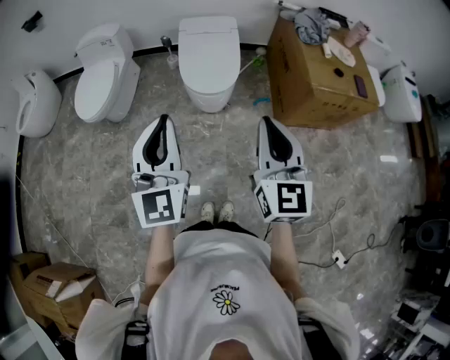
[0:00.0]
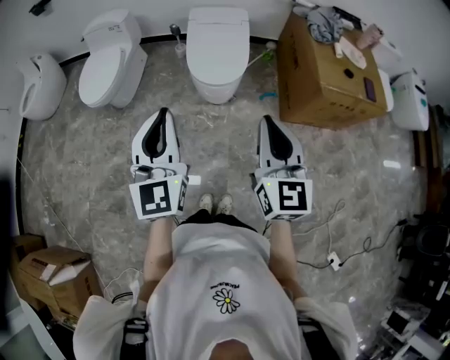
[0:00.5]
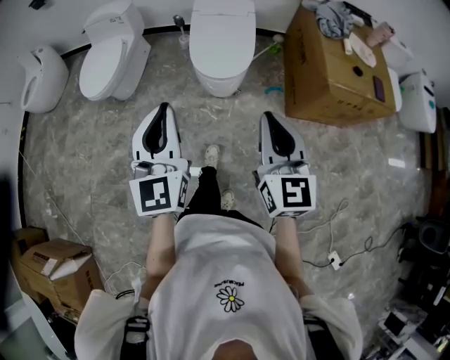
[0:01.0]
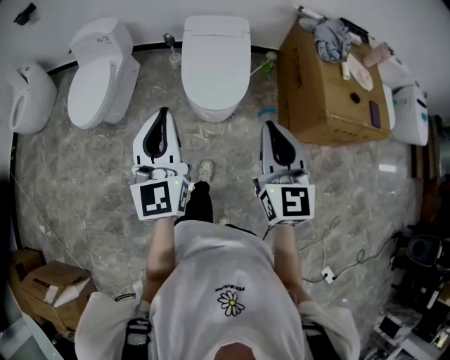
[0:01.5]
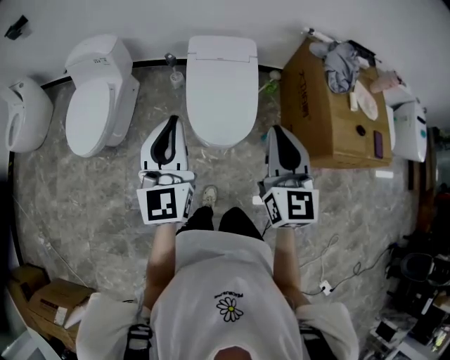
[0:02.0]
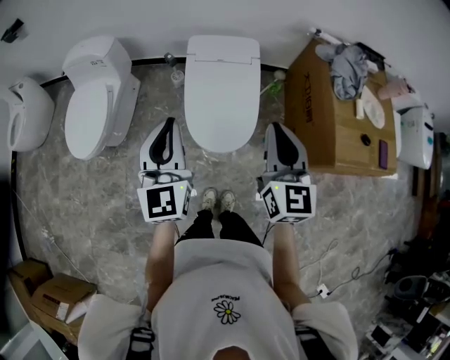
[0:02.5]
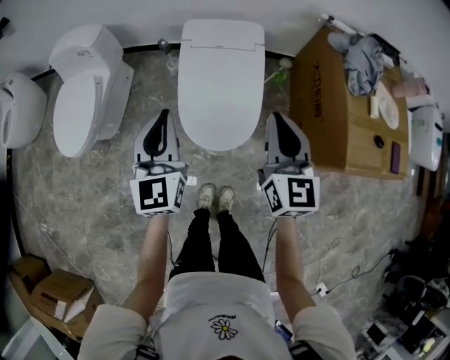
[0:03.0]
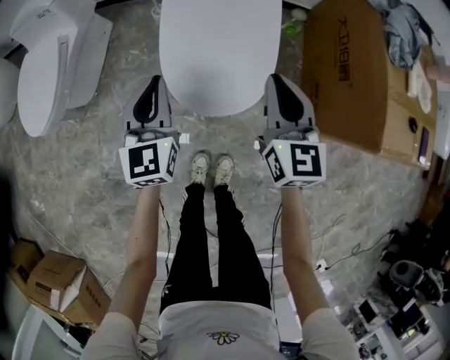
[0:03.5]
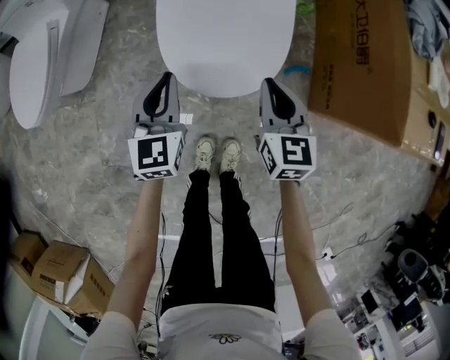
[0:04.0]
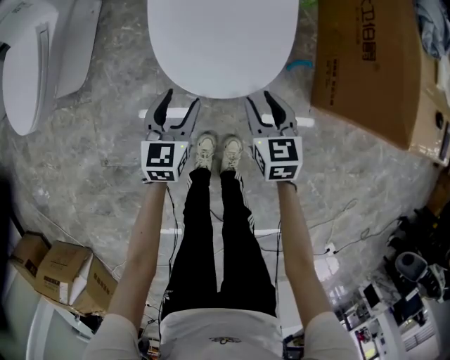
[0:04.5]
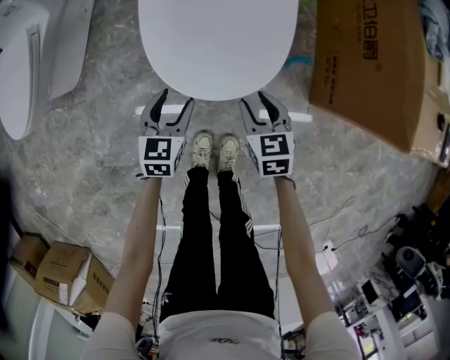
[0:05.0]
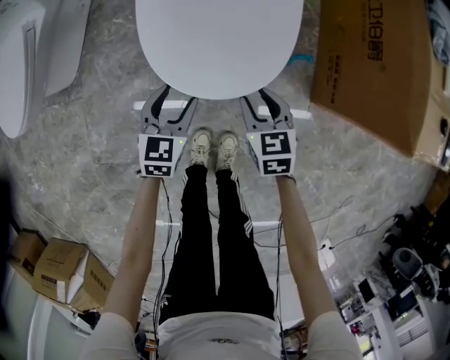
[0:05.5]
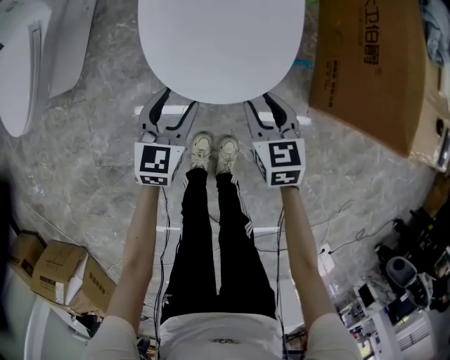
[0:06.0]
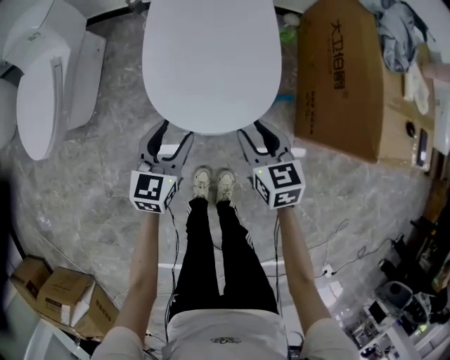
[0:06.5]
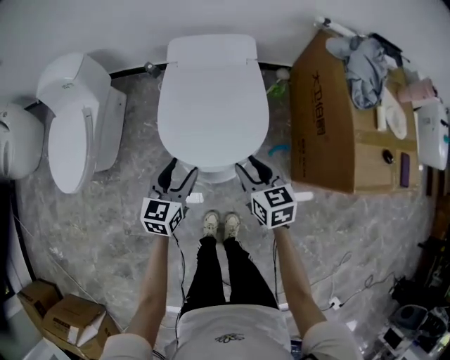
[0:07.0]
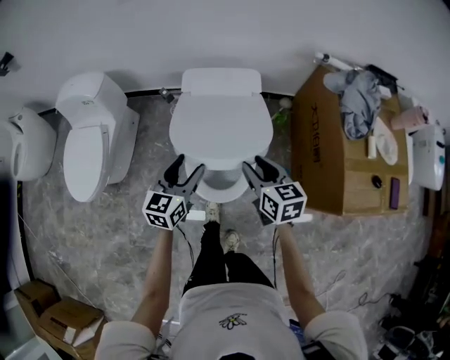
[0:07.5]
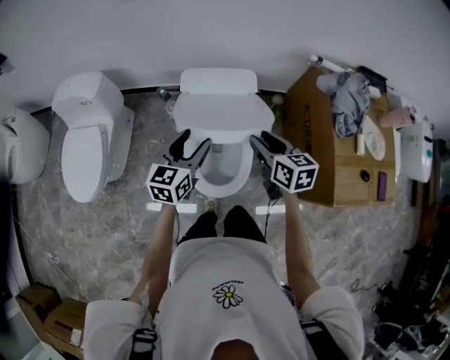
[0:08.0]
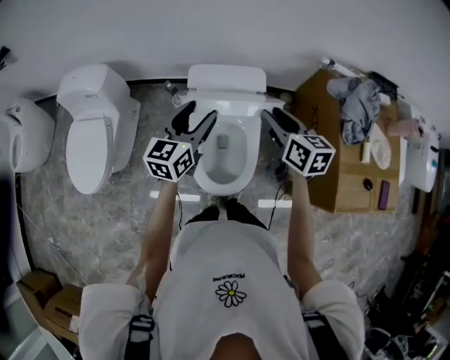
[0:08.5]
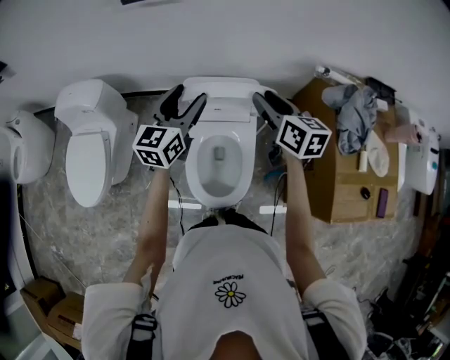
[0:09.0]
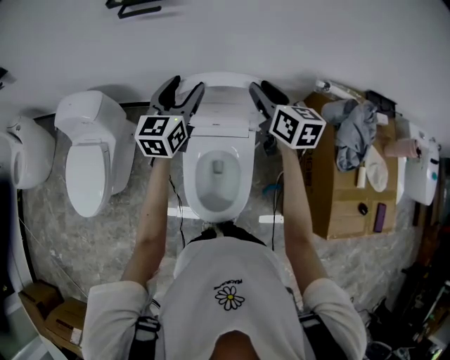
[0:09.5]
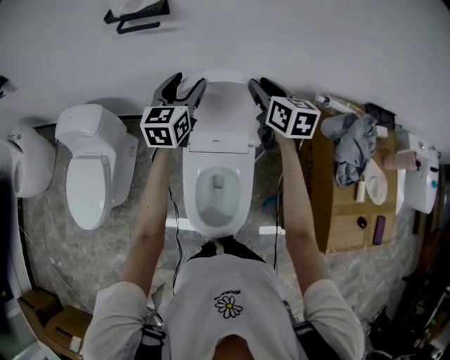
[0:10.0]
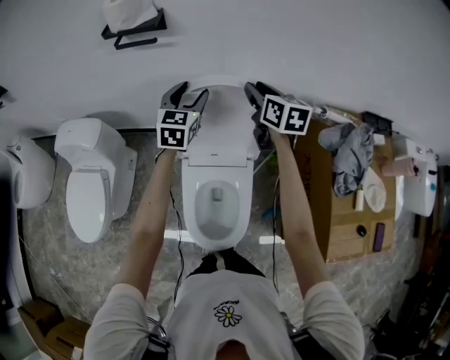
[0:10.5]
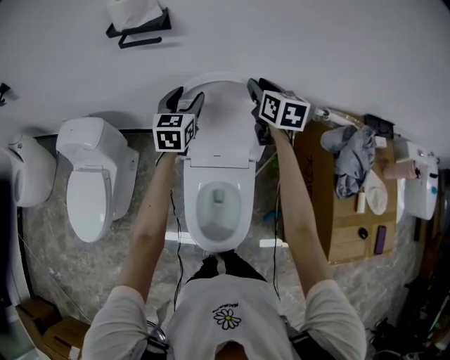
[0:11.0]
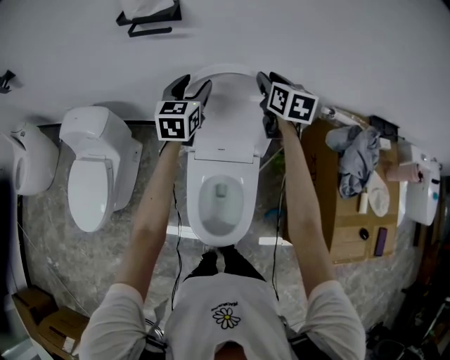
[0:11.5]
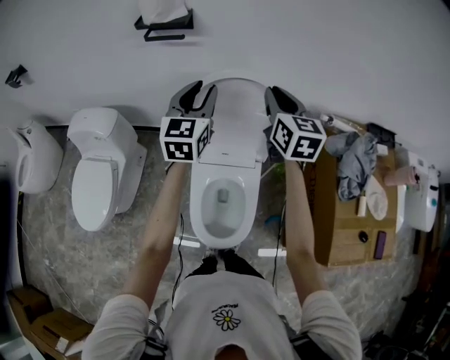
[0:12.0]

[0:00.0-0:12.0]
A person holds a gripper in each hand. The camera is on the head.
0:00.0 to 0:02.0: The grippers both shift forward by some 35 cm.
0:02.0 to 0:04.0: Both grippers travel together downward, roughly 40 cm. The left gripper rotates approximately 20 degrees, while the right gripper rotates some 20 degrees.
0:04.0 to 0:06.0: Both grippers travel together downward, approximately 10 cm. The right gripper opens. The left gripper opens its fingers.
0:06.0 to 0:08.0: Both grippers move upward and forward, approximately 40 cm. The right gripper changes its angle by roughly 20 degrees.
0:08.0 to 0:10.0: Both grippers travel together forward, roughly 30 cm.
0:10.0 to 0:12.0: Both grippers move upward, roughly 5 cm. The left gripper closes.

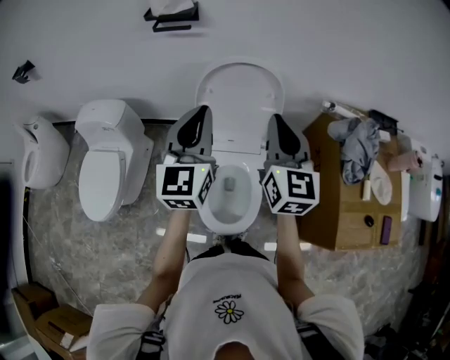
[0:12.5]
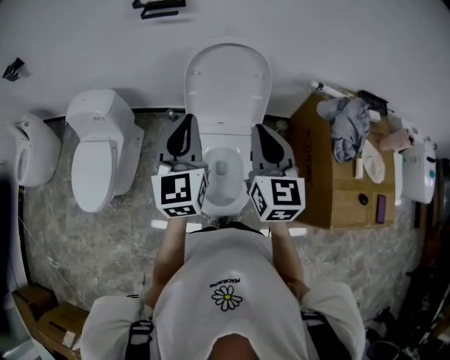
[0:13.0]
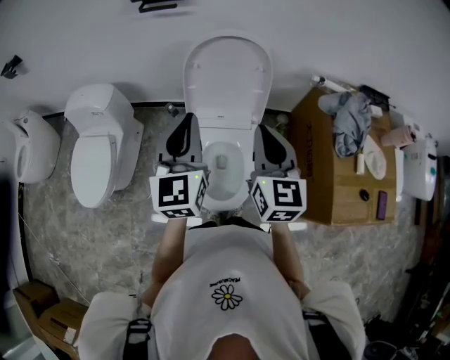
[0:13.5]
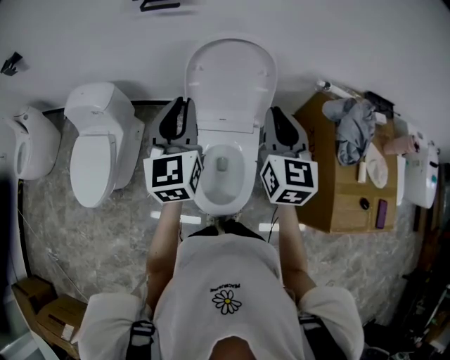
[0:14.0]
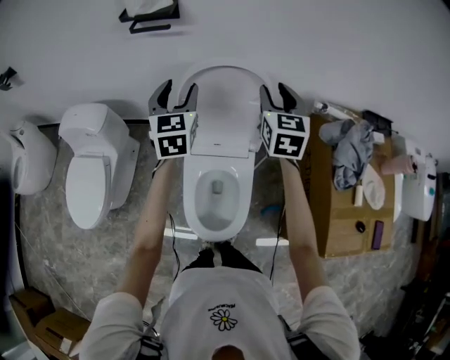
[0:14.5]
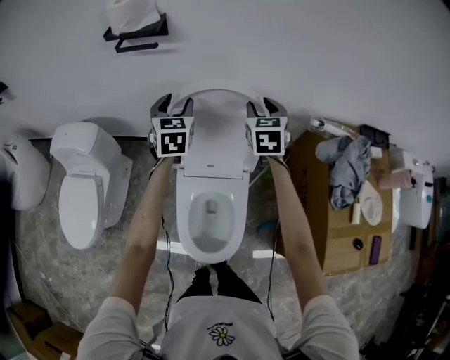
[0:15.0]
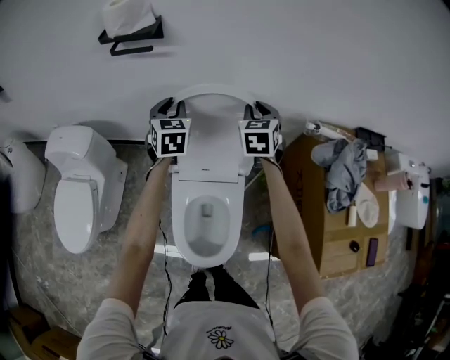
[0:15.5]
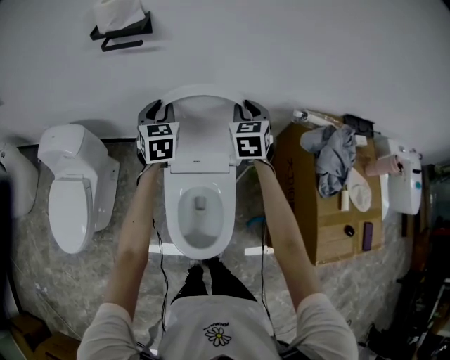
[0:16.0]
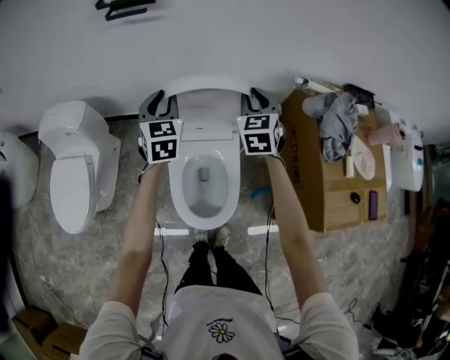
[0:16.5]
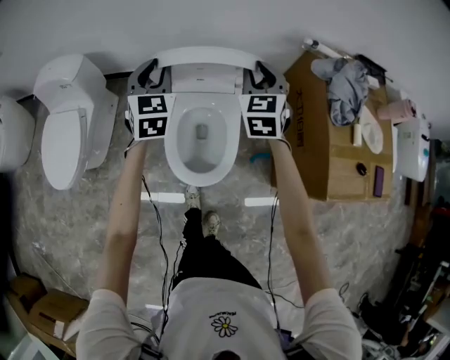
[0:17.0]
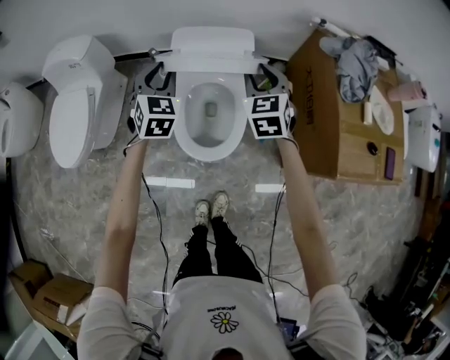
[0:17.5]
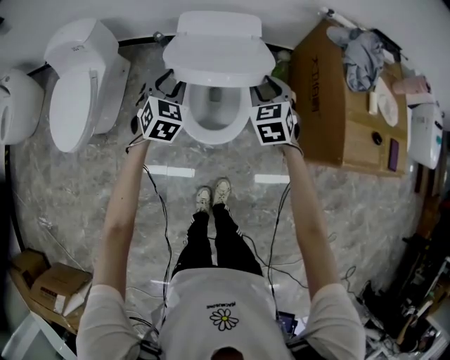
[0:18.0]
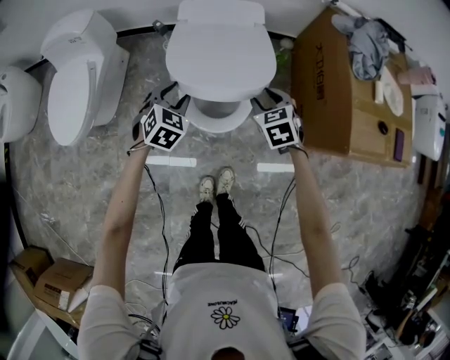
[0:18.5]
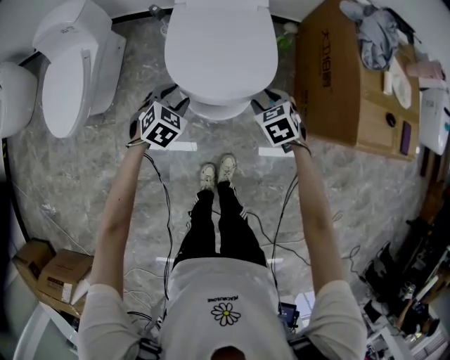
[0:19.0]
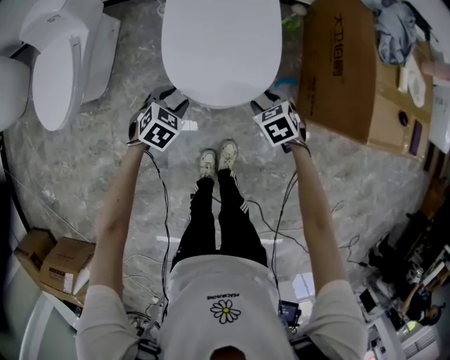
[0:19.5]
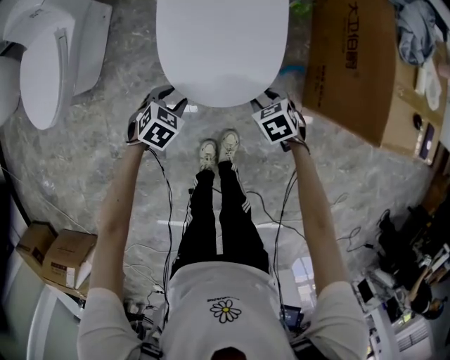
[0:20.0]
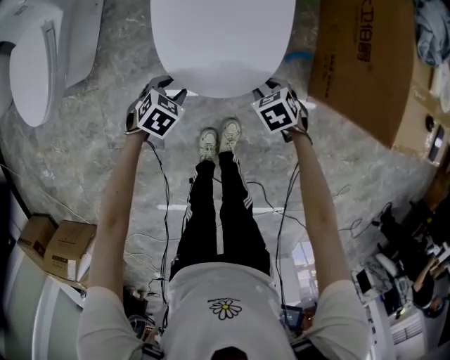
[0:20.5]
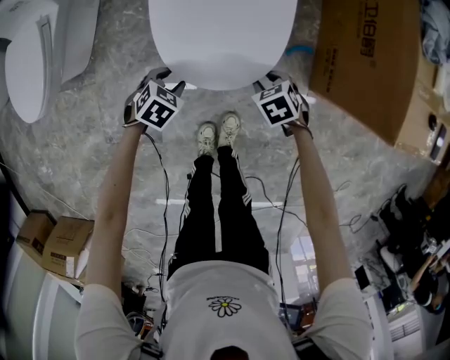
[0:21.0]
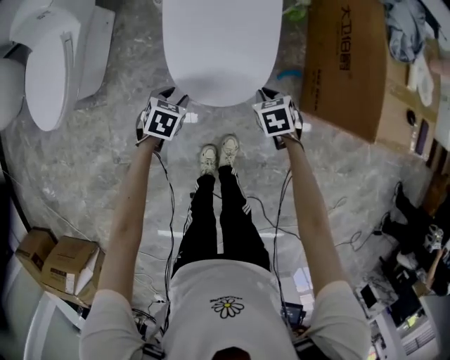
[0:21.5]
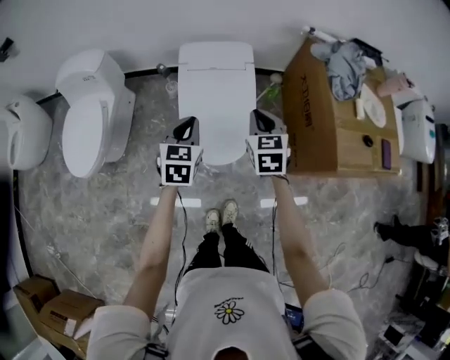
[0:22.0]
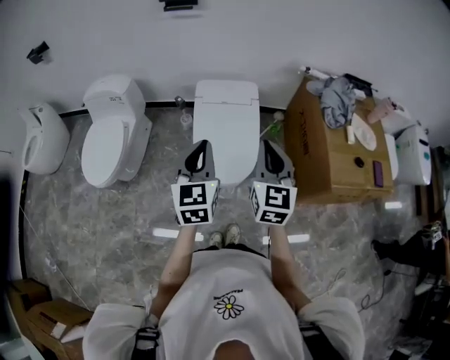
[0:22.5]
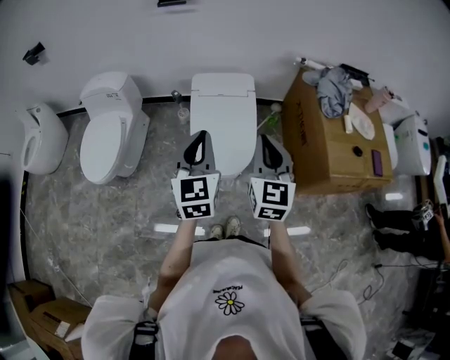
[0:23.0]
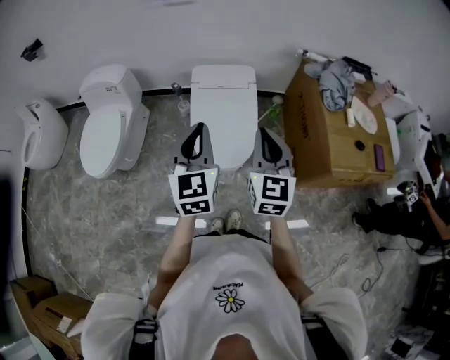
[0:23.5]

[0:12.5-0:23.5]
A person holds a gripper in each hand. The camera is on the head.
0:12.5 to 0:14.5: The two grippers go roughly 20 cm forward and downward. The right gripper opens, while the left gripper opens.
0:14.5 to 0:16.0: The left gripper travels downward and forward by about 10 cm, and closes up. Meanwhile the right gripper is displaced downward by approximately 10 cm.
0:16.0 to 0:18.0: The grippers both shift backward by roughly 35 cm. The left gripper changes its angle by about 30 degrees.
0:18.0 to 0:20.0: Both grippers move downward and backward, some 30 cm. The left gripper rotates roughly 40 degrees; the right gripper tilts its fingers roughly 30 degrees downward.
0:20.0 to 0:21.5: The left gripper travels downward and back again, some 5 cm each way. Meanwhile the right gripper moves approximately 5 cm downward and comes back, and closes its fingers.
0:21.5 to 0:23.5: Both grippers move upward, roughly 50 cm. The left gripper tilts its fingers about 60 degrees upward, and closes, while the right gripper angles its fingers upward, by about 60 degrees.

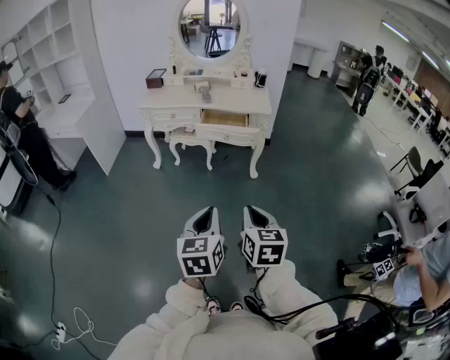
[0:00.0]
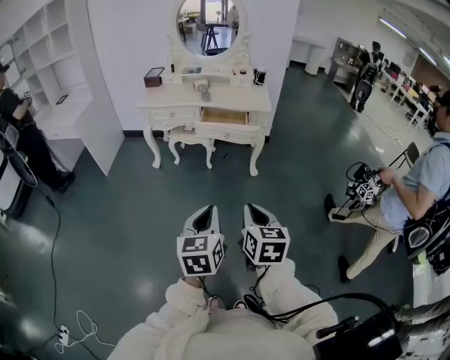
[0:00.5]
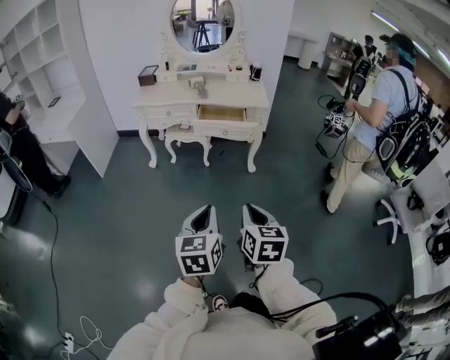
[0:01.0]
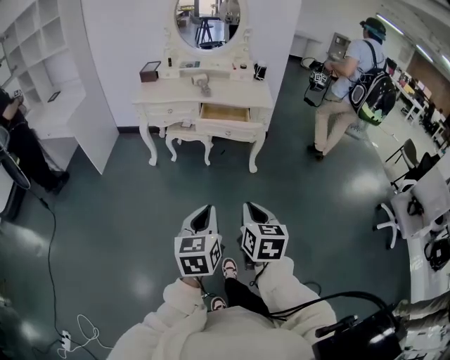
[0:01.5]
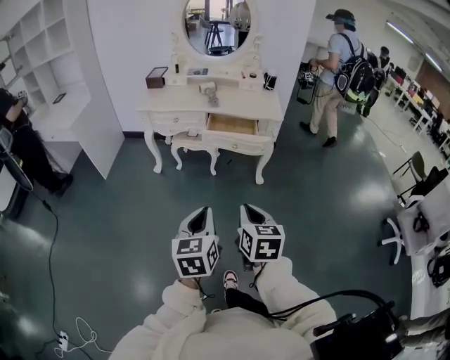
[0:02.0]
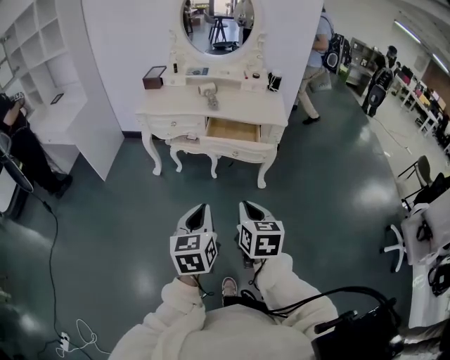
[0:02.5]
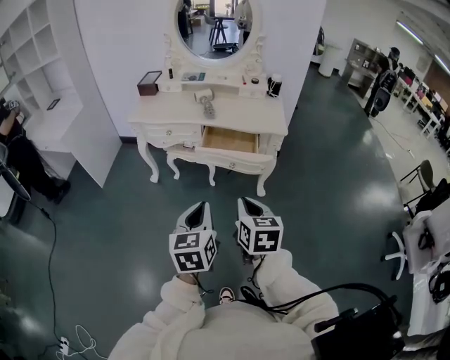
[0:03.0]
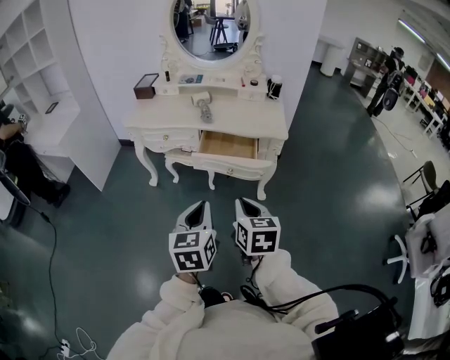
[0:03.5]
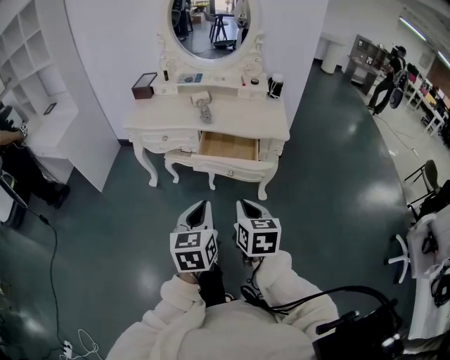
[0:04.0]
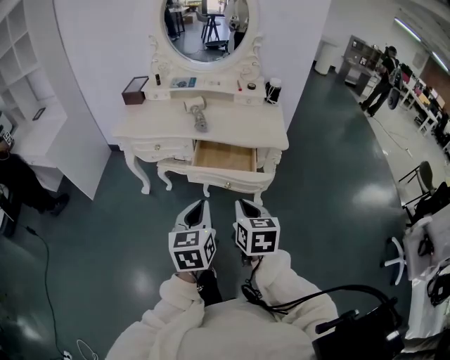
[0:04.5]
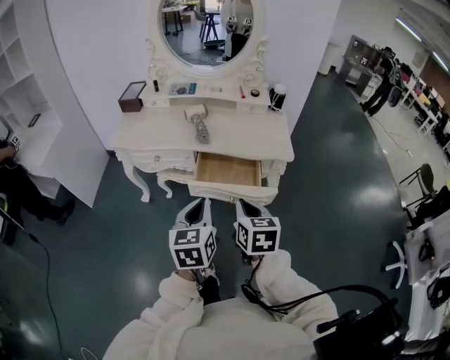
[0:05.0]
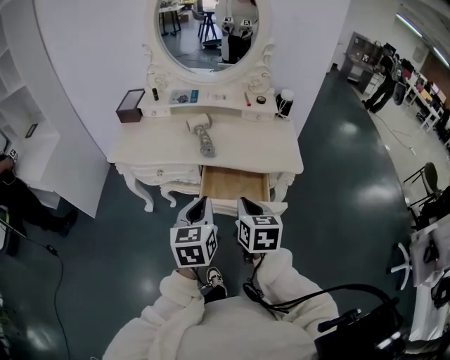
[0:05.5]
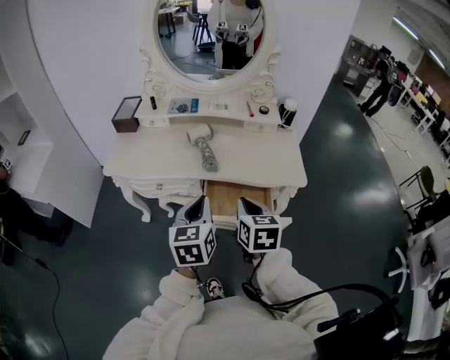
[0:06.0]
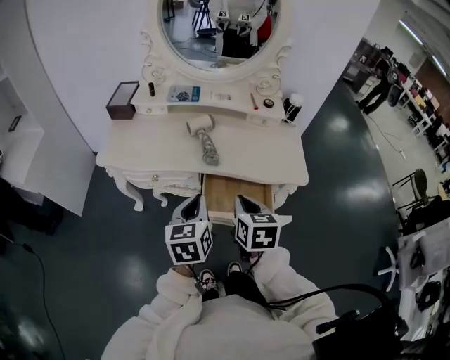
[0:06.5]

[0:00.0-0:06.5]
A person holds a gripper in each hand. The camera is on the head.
0:00.0 to 0:02.0: The grippers both shift forward and to the left by approximately 15 cm.
0:02.0 to 0:04.5: Both grippers travel together forward, some 30 cm.
0:04.5 to 0:06.5: Both grippers move forward, some 25 cm.
